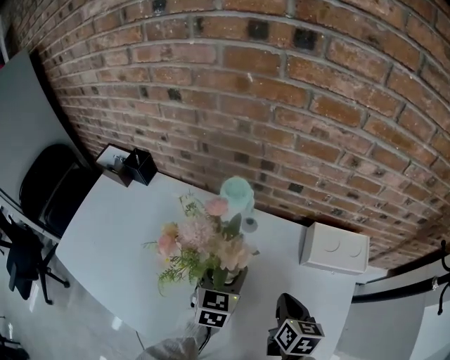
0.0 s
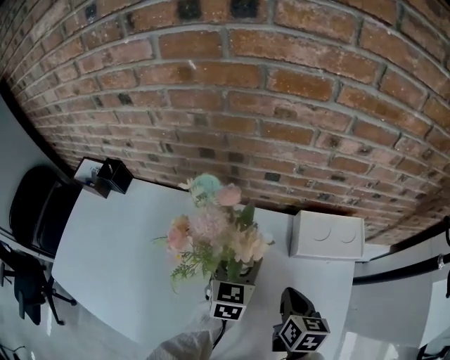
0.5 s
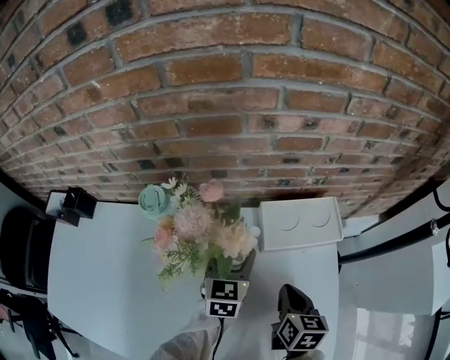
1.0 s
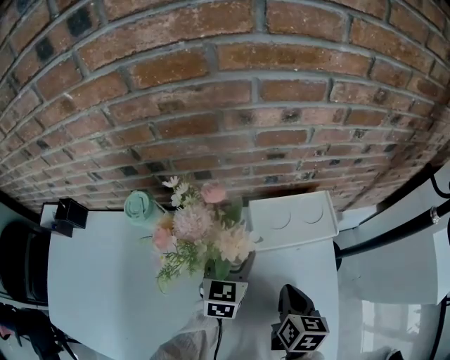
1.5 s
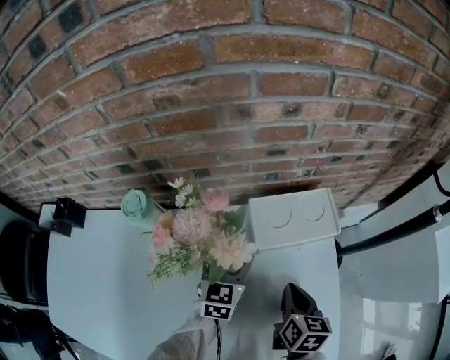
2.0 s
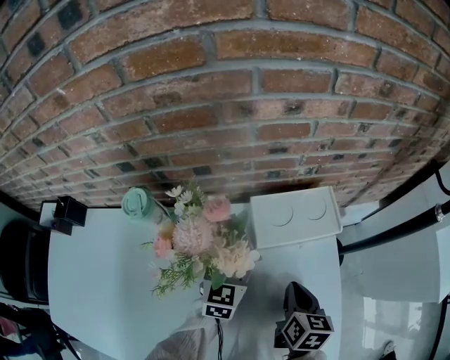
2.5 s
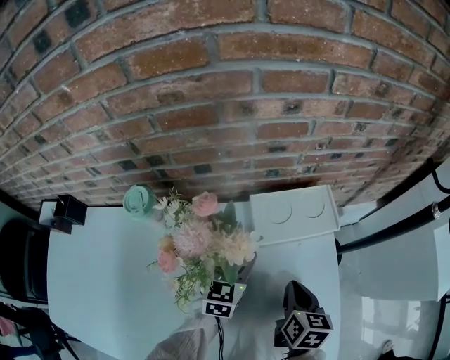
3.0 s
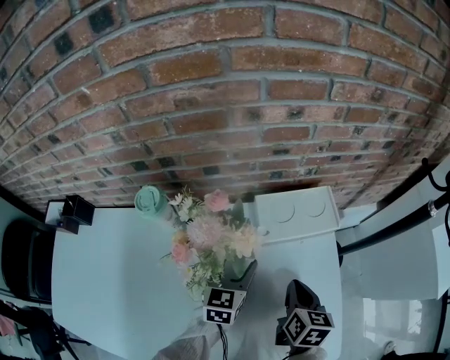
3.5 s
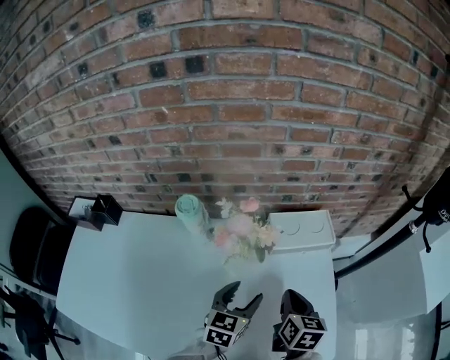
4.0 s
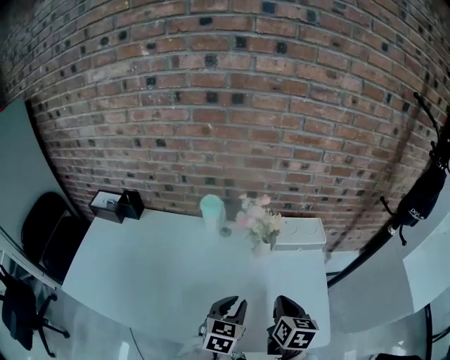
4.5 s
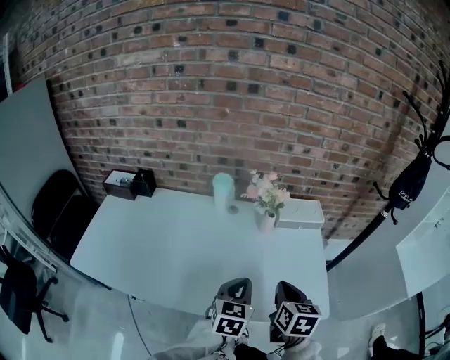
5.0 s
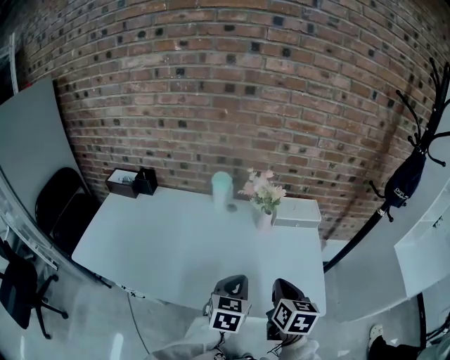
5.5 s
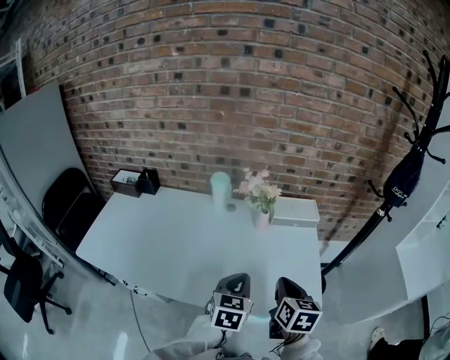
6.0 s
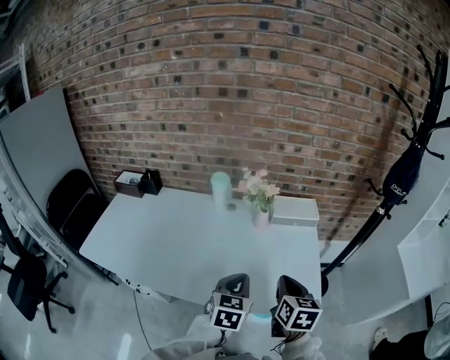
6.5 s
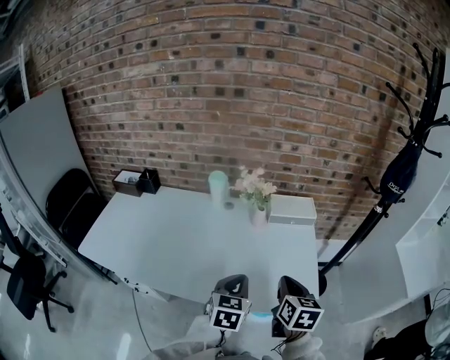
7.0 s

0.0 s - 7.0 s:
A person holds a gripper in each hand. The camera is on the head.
0.0 s - 2.0 s: The right gripper moves to the right, some 15 cm, and swivels approximately 20 degrees. The left gripper shifts about 20 cm to the right and forward, and swivels roughly 20 degrees.
2.0 s - 3.5 s: The grippers stay close to where they were, moving slightly.
3.5 s - 5.0 s: Both grippers move backward and upward, roughly 30 cm. The left gripper closes.
5.0 s - 7.0 s: Both grippers move to the right, some 5 cm.

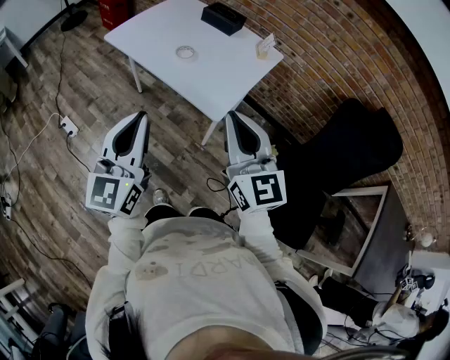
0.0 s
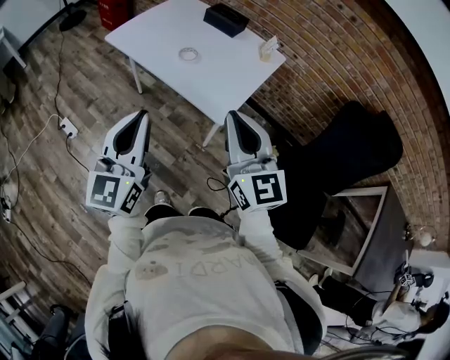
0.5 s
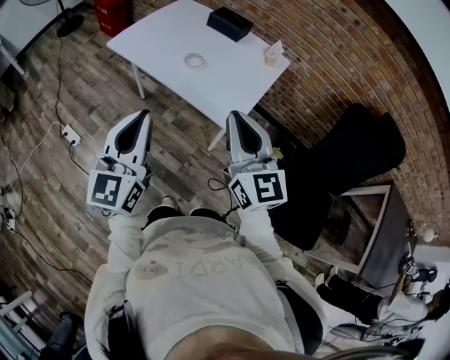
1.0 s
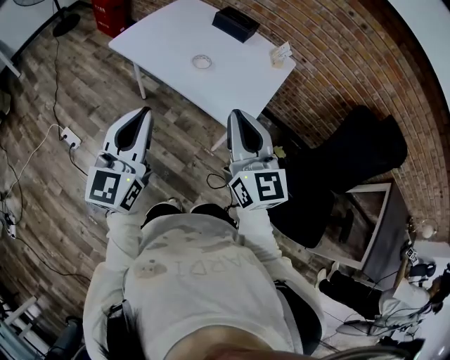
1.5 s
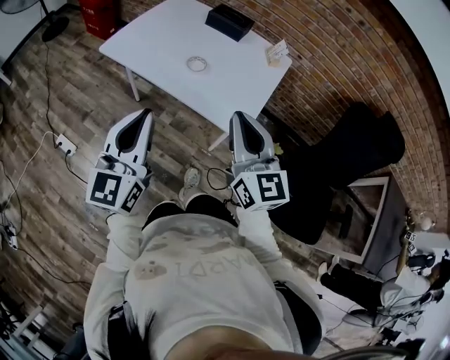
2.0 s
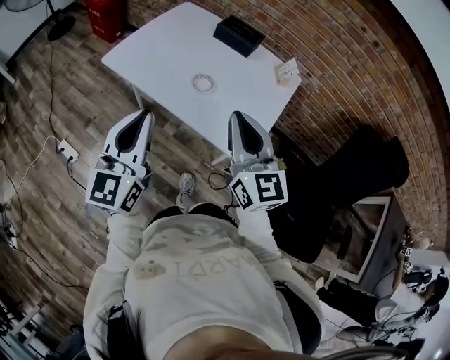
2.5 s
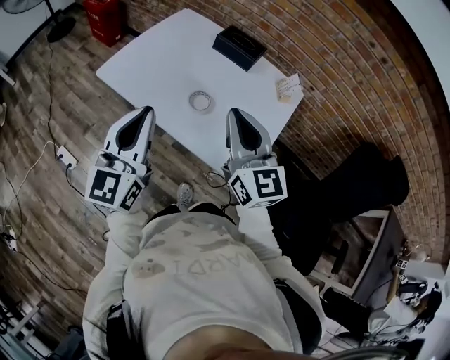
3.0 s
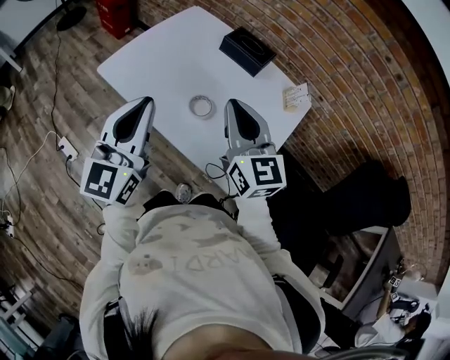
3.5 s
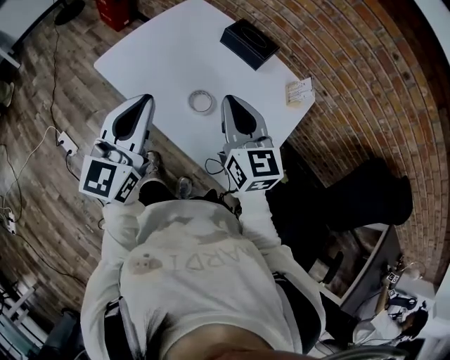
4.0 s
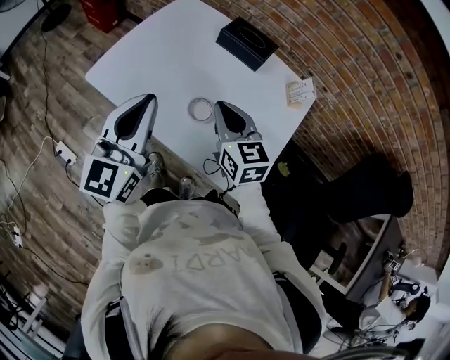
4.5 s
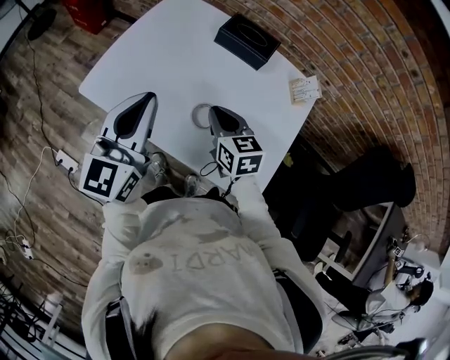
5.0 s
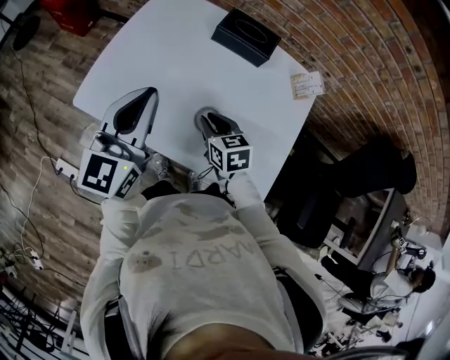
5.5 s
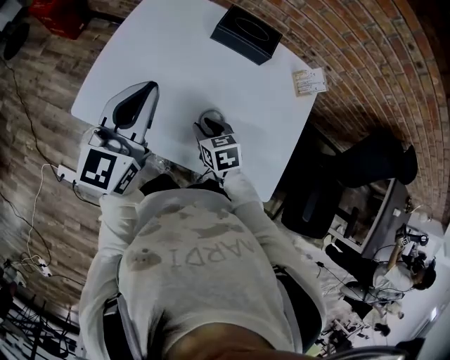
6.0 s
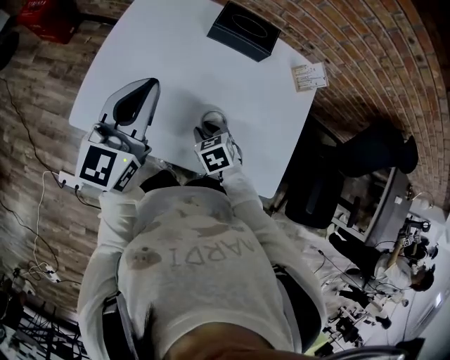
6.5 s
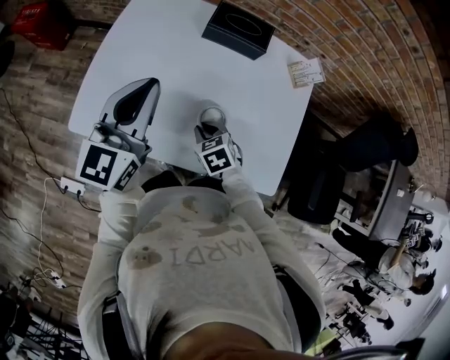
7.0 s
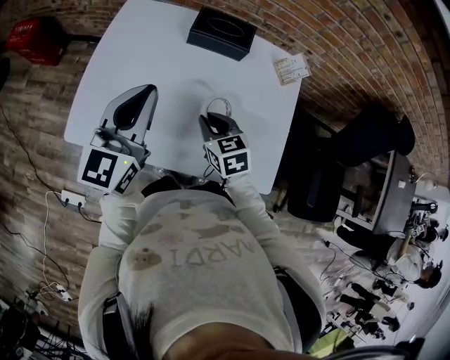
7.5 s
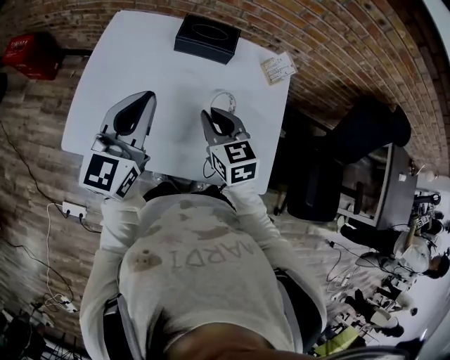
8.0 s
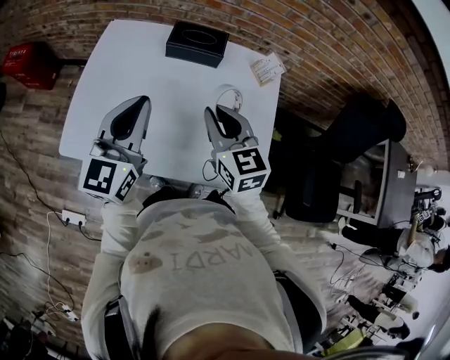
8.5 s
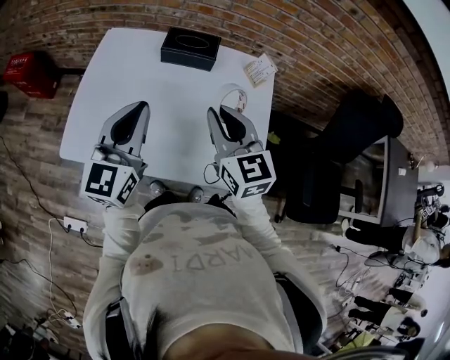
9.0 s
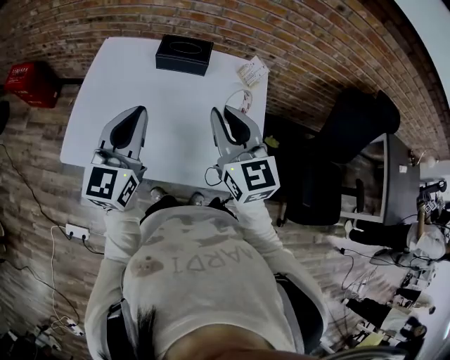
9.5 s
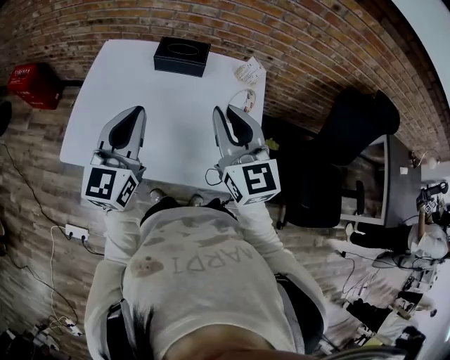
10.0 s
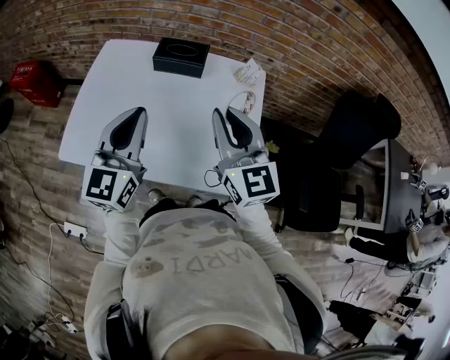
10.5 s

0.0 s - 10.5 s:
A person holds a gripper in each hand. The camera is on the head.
0.0 s - 2.0 s: The grippers both shift forward and to the left by some 15 cm.
2.0 s - 4.0 s: Both grippers move forward, some 30 cm.
4.0 s - 6.5 s: The right gripper shifts some 30 cm downward, tips its fingers downward by some 60 degrees, and opens. The left gripper is displaced forward by approximately 25 cm, and rotates approximately 30 degrees.
6.5 s - 8.5 s: The right gripper shifts some 25 cm upward, and tilts its fingers about 40 degrees upward; the left gripper heads to the right, covering approximately 10 cm.
8.5 s - 10.5 s: The left gripper shifts approximately 10 cm to the right and backward; the right gripper is displaced upward, to the right and backward by roughly 15 cm.

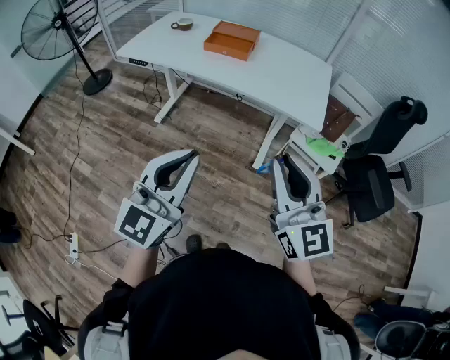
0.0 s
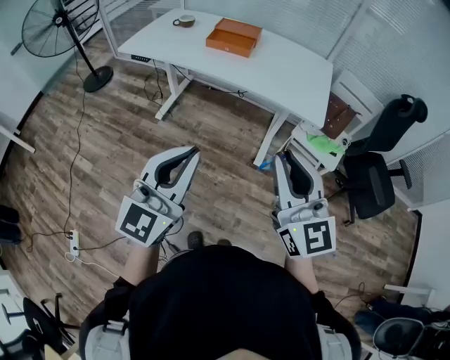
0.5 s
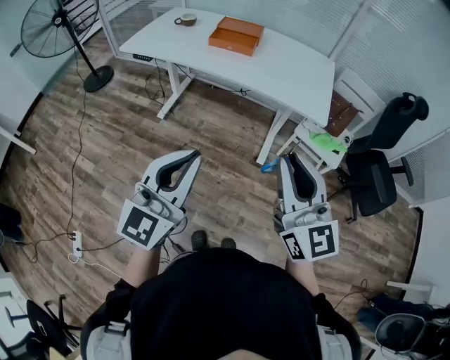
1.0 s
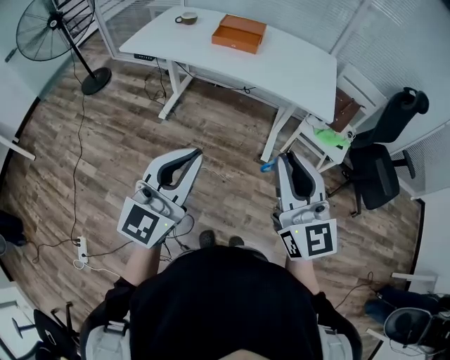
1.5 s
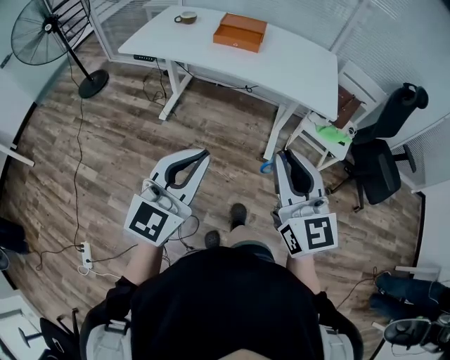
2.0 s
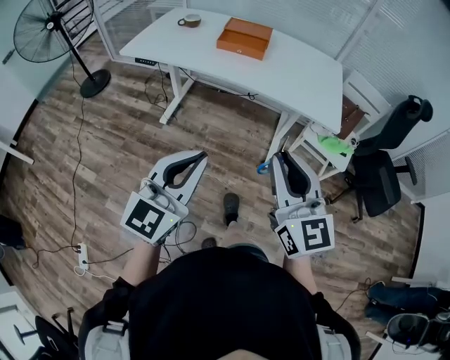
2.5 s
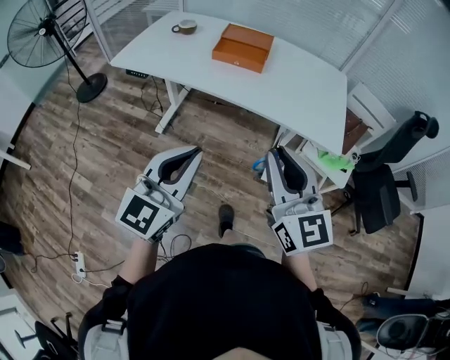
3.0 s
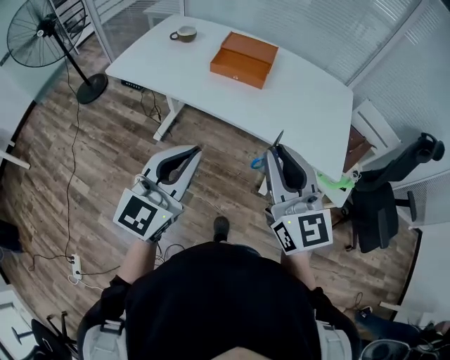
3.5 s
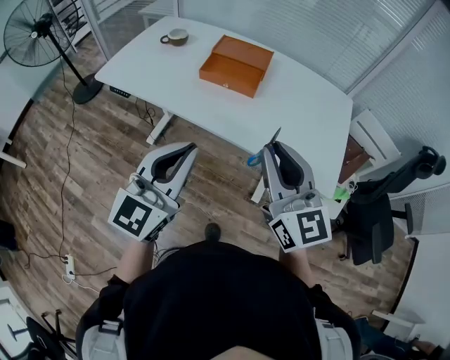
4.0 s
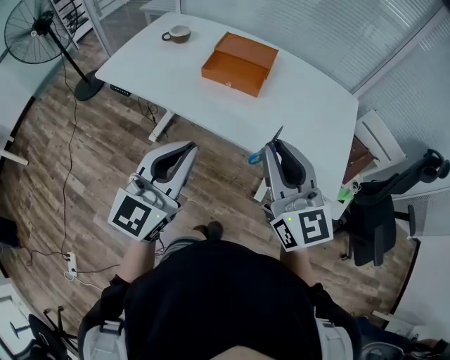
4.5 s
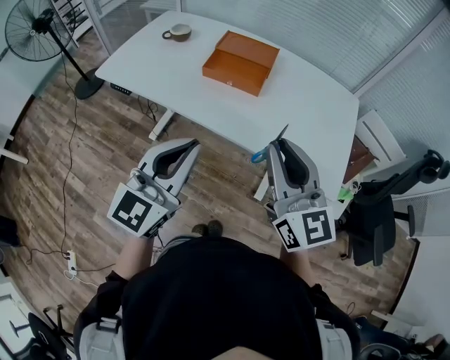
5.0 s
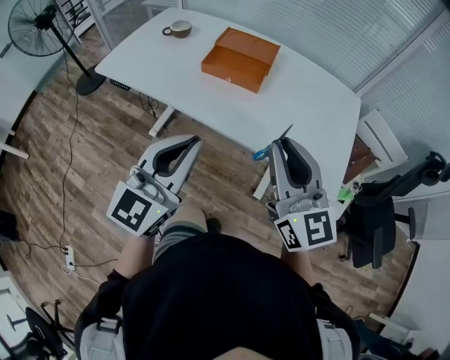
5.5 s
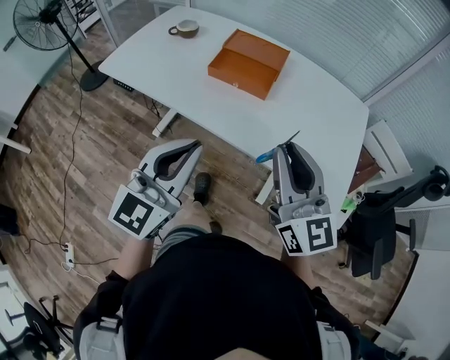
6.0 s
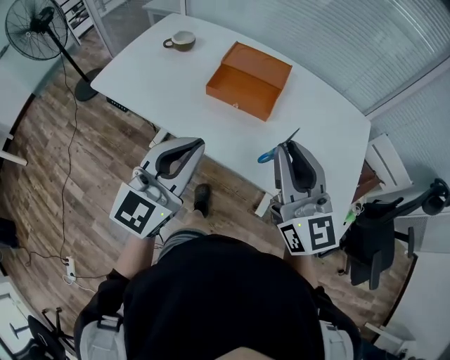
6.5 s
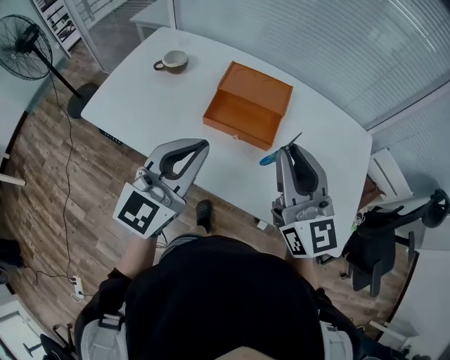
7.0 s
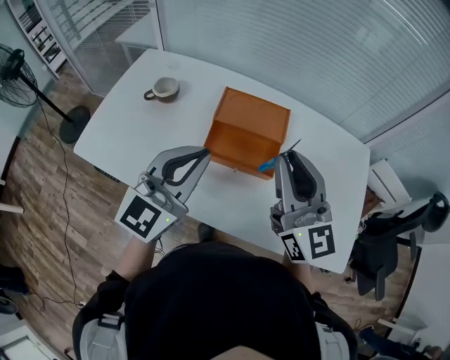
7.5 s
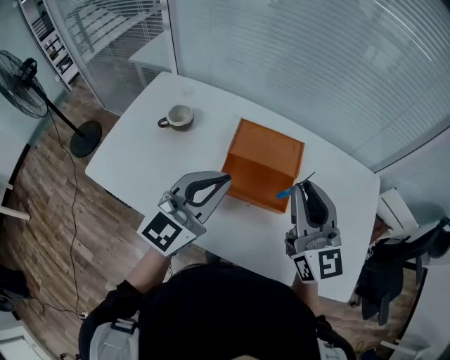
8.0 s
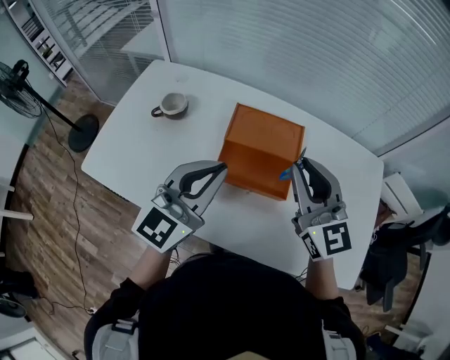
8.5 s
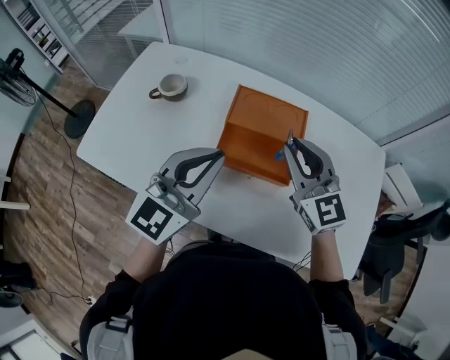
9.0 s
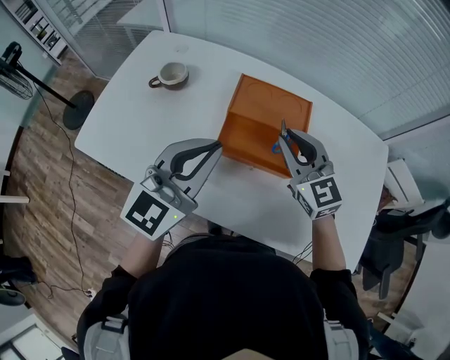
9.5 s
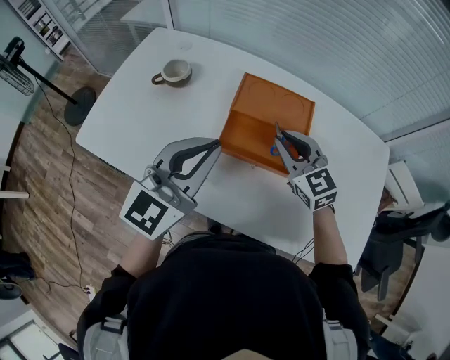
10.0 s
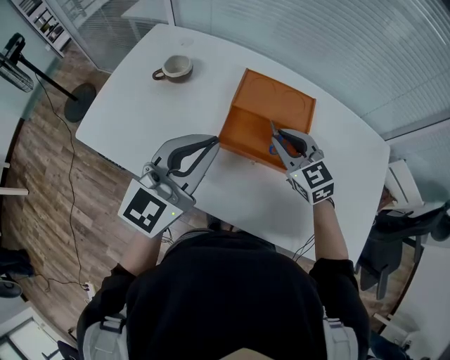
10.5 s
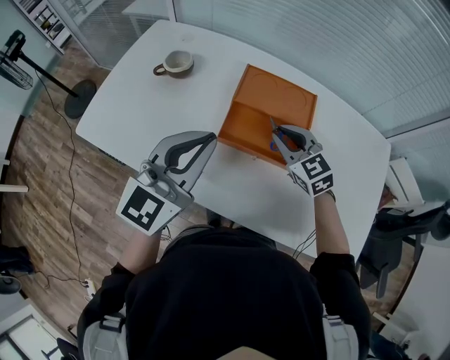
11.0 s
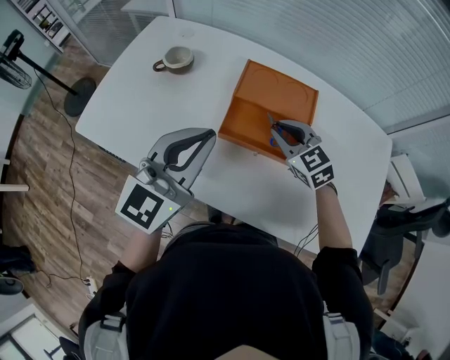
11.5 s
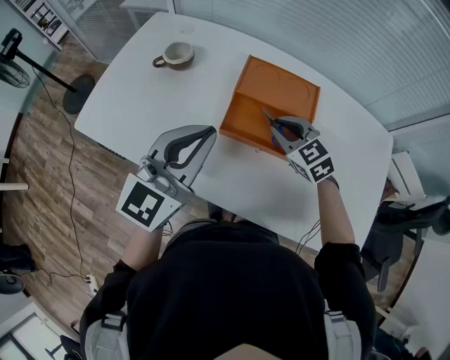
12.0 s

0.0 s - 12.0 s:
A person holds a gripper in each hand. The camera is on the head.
0.0 s - 2.0 s: Both grippers travel together to the left, approximately 10 cm.
2.0 s - 4.0 s: Both grippers move forward, some 30 cm.
4.0 s - 6.0 s: There are only small adjustments of the grippers.
6.0 s - 8.0 s: Both grippers travel together forward, about 30 cm.
8.0 s - 10.0 s: The right gripper shifts roughly 20 cm downward and forward, and turns by roughly 30 degrees.
10.0 s - 12.0 s: The right gripper moves downward, approximately 5 cm.
